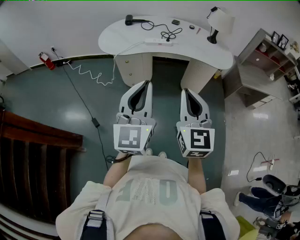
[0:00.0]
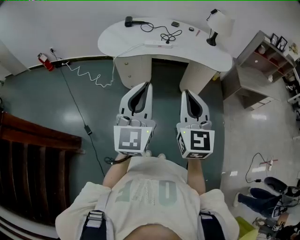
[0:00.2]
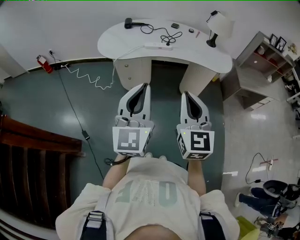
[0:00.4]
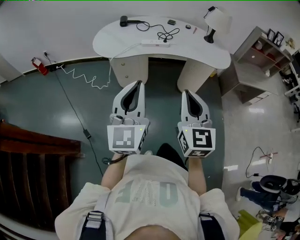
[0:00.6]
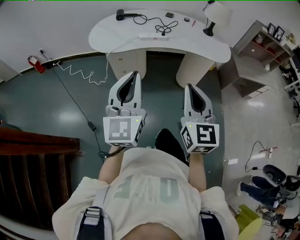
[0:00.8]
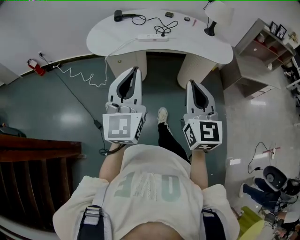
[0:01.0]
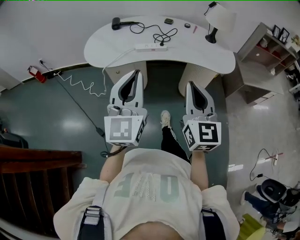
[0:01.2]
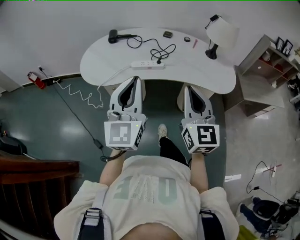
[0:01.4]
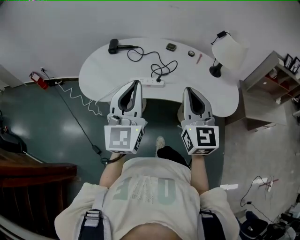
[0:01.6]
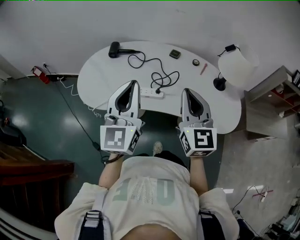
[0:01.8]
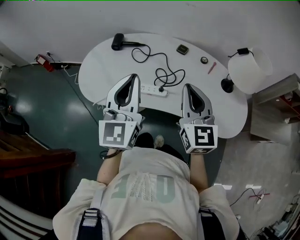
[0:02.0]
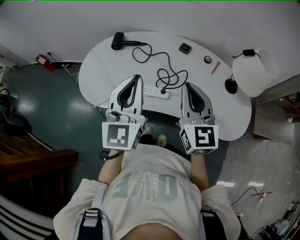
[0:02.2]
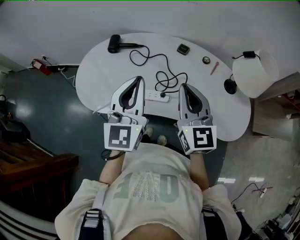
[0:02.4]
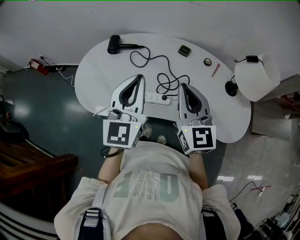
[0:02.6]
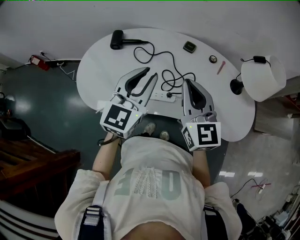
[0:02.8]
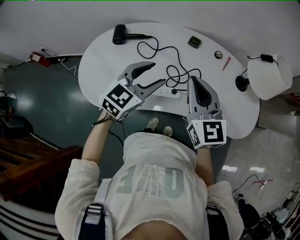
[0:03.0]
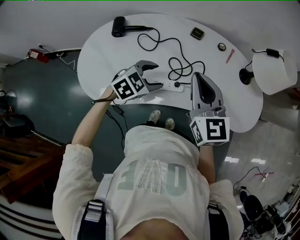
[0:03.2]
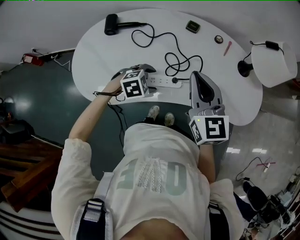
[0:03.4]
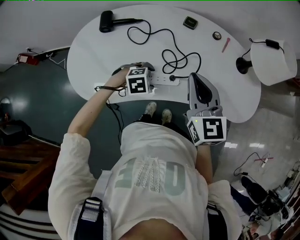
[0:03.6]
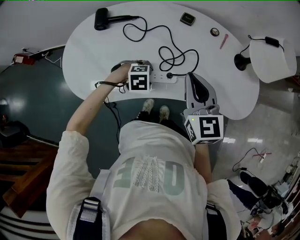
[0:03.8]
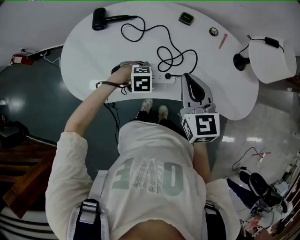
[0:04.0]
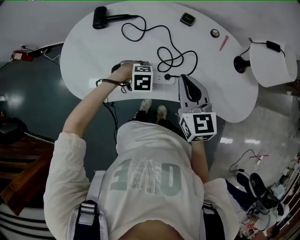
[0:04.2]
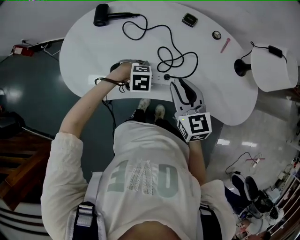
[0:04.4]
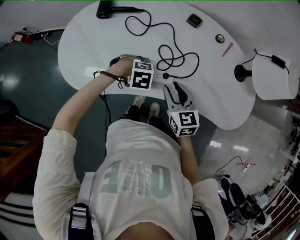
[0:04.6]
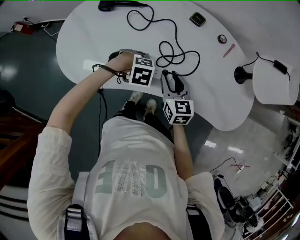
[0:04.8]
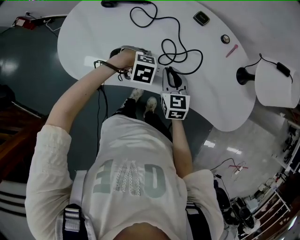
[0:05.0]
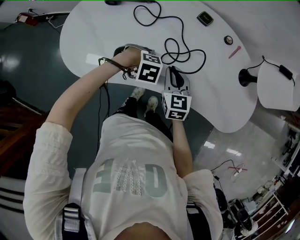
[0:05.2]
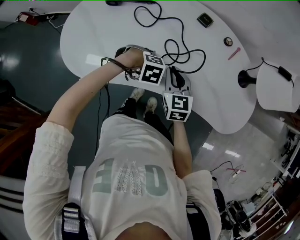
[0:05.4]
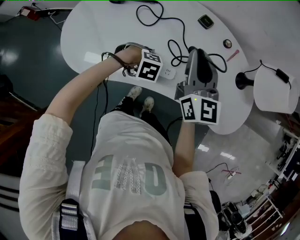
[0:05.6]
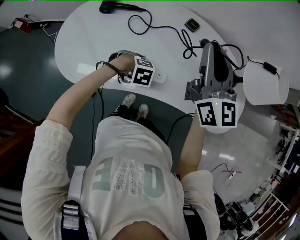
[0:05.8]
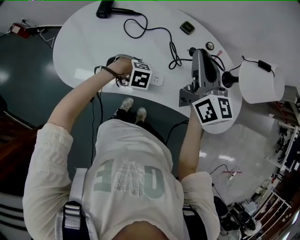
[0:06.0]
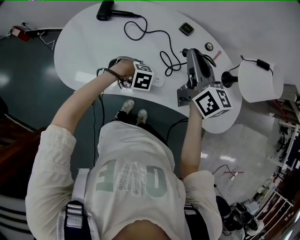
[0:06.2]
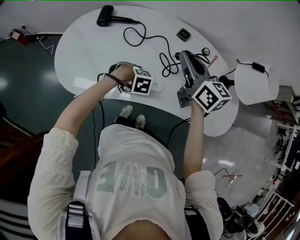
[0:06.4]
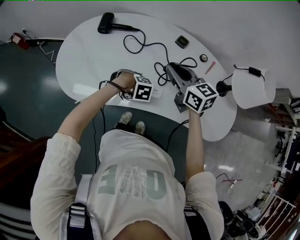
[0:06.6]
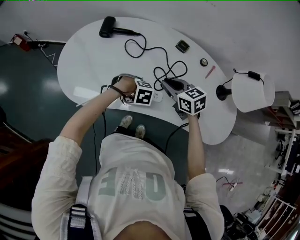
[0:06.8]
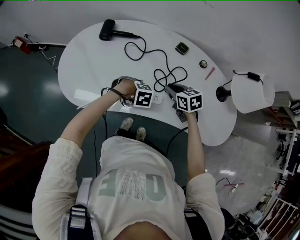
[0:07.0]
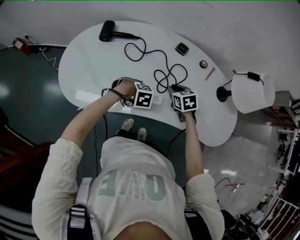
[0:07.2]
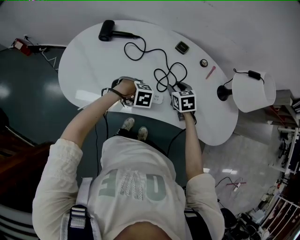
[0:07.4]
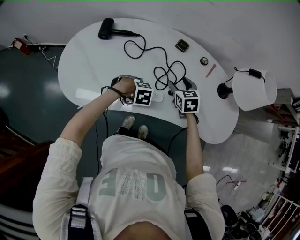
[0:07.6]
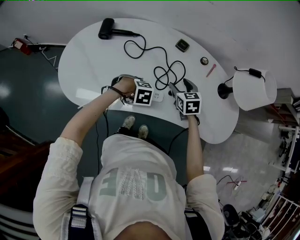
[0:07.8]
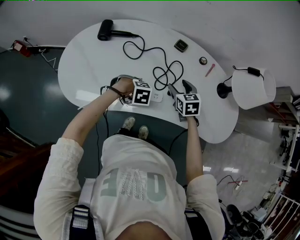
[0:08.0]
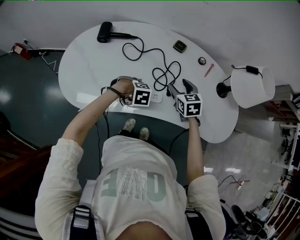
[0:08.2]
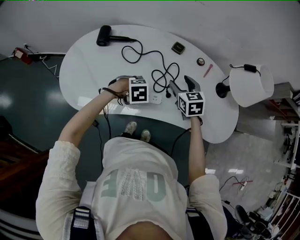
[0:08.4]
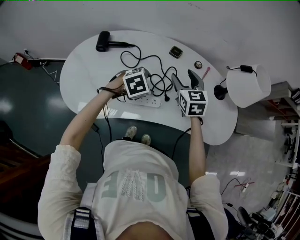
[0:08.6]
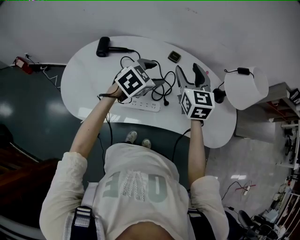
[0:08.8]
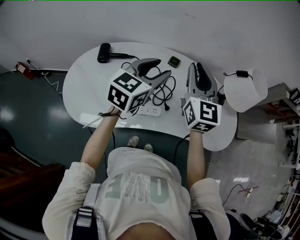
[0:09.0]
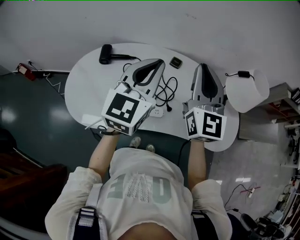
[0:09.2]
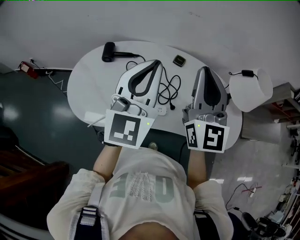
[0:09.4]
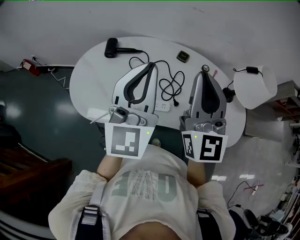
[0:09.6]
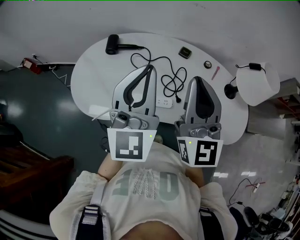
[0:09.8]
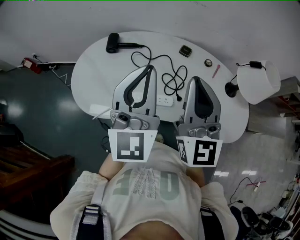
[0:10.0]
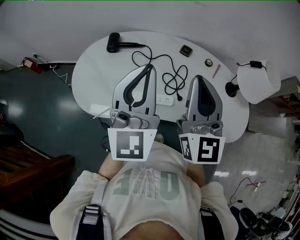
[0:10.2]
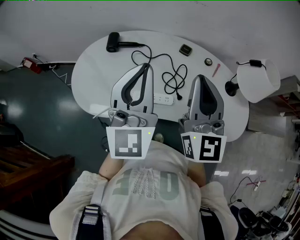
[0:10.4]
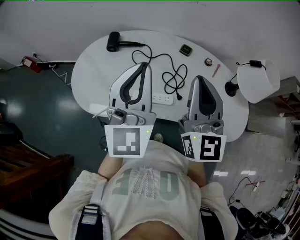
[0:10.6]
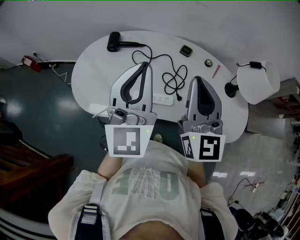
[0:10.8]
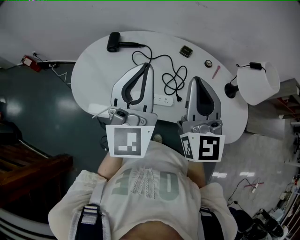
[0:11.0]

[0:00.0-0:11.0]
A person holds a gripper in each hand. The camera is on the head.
0:00.0 to 0:01.6: Both grippers travel together forward, some 35 cm.
0:01.6 to 0:03.2: The left gripper travels downward by about 25 cm, points its fingers roughly 60 degrees further downward, and opens its fingers. The right gripper ends up roughly 25 cm from where it was.
0:03.2 to 0:04.8: The right gripper moves downward, some 20 cm, turns by about 20 degrees, and opens its fingers, while the left gripper travels downward by some 15 cm, and tips its fingers downward by some 30 degrees.
0:04.8 to 0:06.2: The right gripper heads upward, covering approximately 20 cm, turns by roughly 30 degrees, and closes up.
0:06.2 to 0:07.8: The right gripper travels downward by approximately 20 cm, tips its fingers downward by approximately 40 degrees, and opens.
0:07.8 to 0:09.4: Both grippers move upward, about 40 cm. The left gripper tips its fingers upward by roughly 100 degrees, and closes its fingers; the right gripper points its fingers some 60 degrees further upward, and closes.
0:09.4 to 0:11.0: The right gripper moves some 5 cm, while the left gripper shifts by some 5 cm.

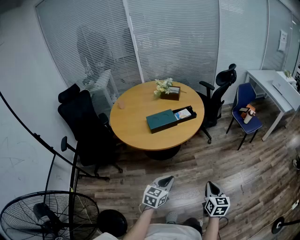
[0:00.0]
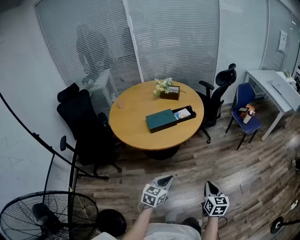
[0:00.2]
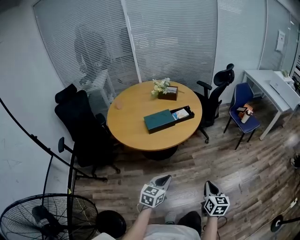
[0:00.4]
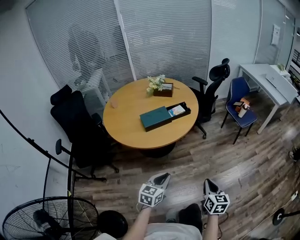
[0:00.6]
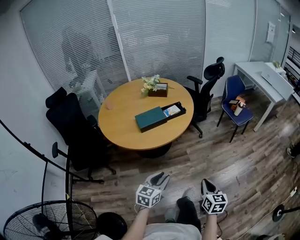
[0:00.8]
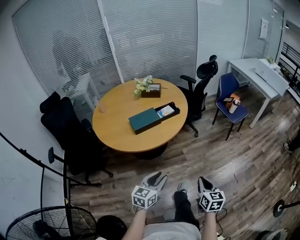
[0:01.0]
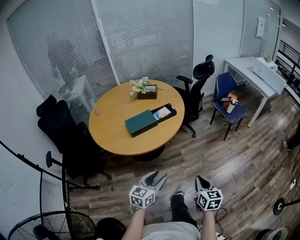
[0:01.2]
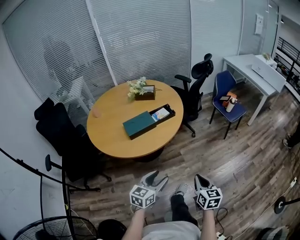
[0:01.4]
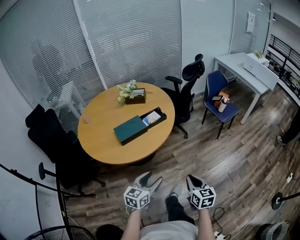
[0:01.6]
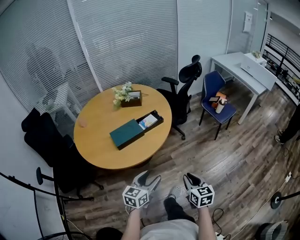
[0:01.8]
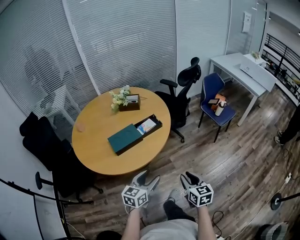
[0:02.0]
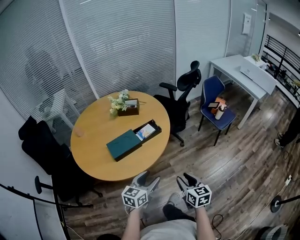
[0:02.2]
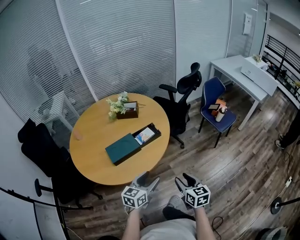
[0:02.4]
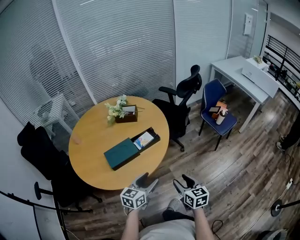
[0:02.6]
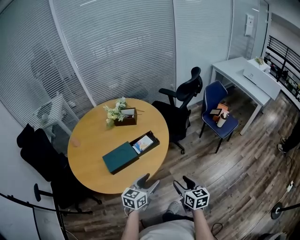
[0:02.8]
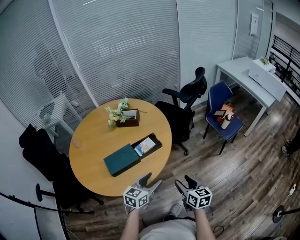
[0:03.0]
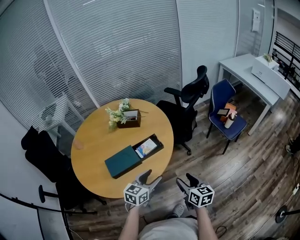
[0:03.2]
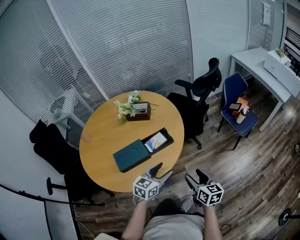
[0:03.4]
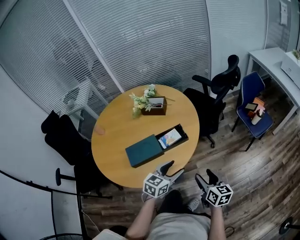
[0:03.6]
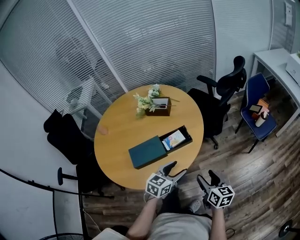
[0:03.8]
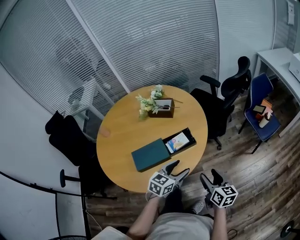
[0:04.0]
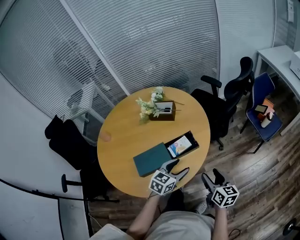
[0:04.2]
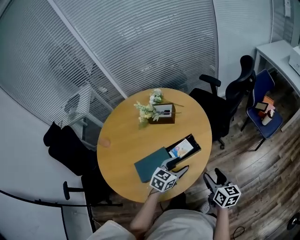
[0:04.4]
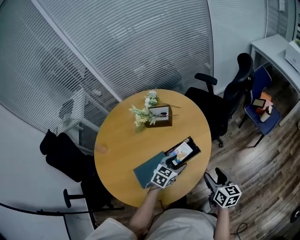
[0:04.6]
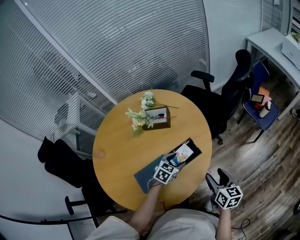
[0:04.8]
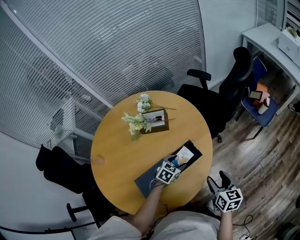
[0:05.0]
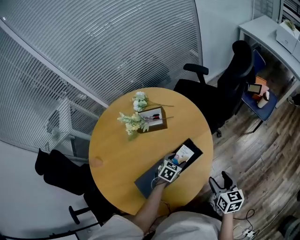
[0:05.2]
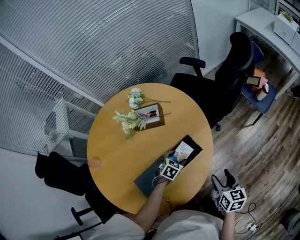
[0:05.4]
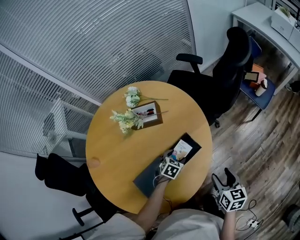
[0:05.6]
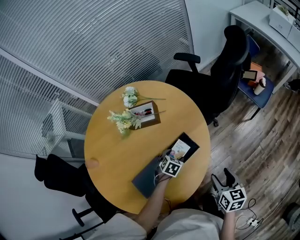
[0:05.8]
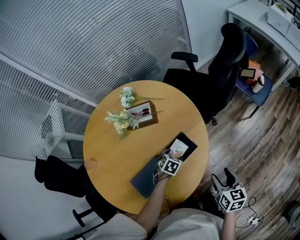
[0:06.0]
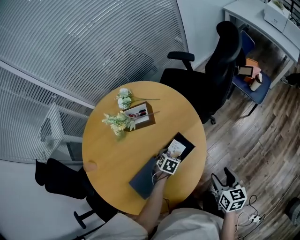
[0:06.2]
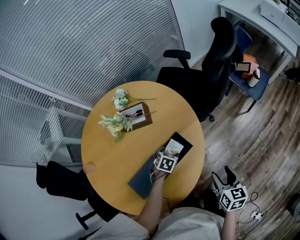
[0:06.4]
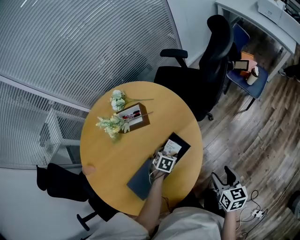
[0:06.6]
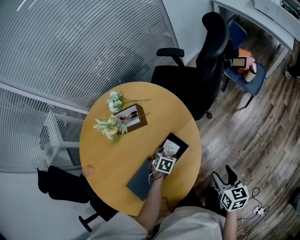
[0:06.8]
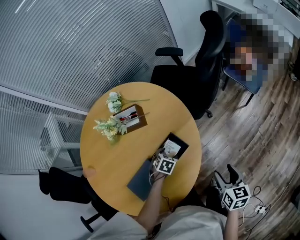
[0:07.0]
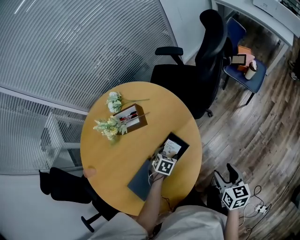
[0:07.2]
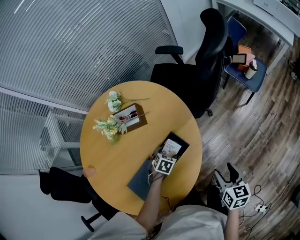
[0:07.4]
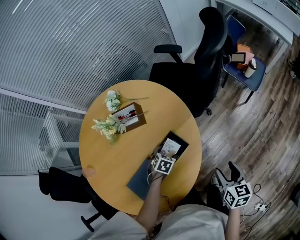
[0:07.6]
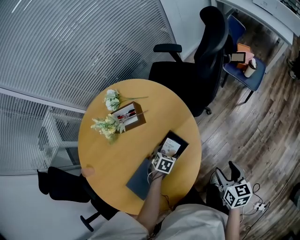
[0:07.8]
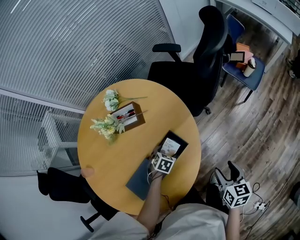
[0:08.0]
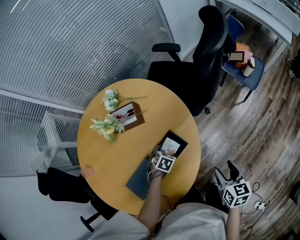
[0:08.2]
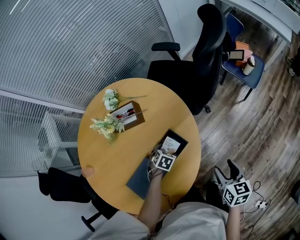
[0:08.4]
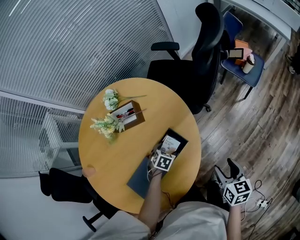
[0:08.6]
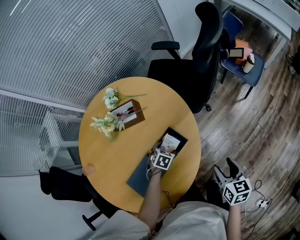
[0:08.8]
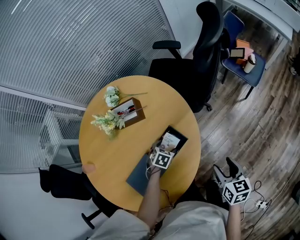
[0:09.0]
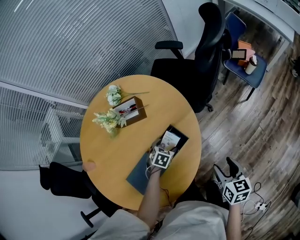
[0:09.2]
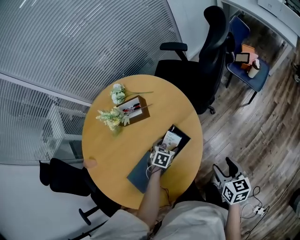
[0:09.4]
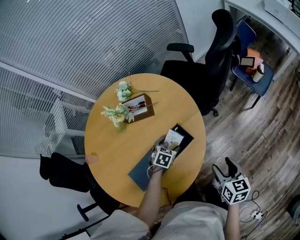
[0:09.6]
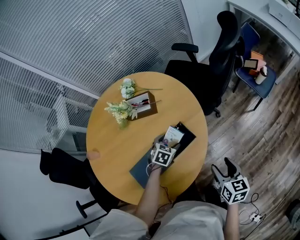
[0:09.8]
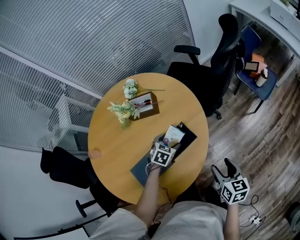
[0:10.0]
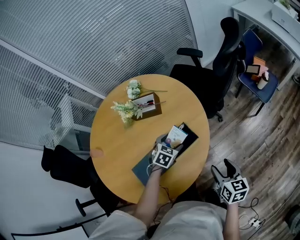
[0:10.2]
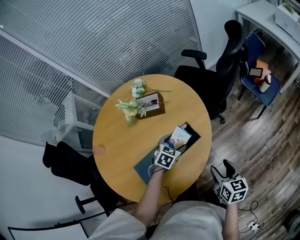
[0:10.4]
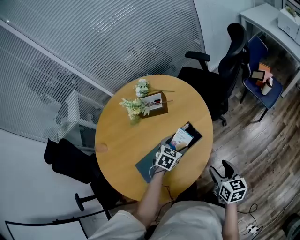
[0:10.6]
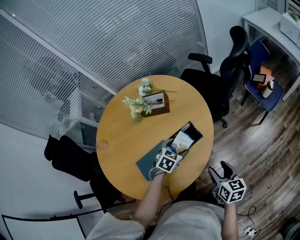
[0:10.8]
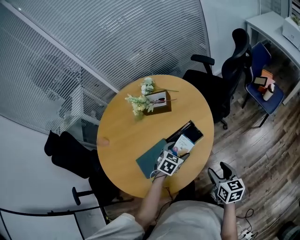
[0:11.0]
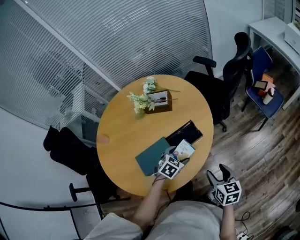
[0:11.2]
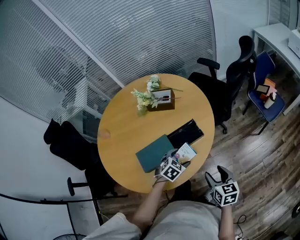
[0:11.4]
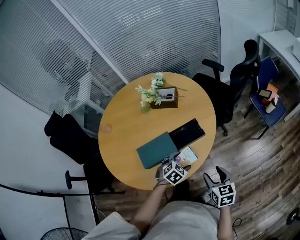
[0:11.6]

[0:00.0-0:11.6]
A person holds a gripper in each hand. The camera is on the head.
0:00.0 to 0:01.4: Both grippers move forward, some 5 cm. The left gripper opens up.
0:01.4 to 0:02.8: The grippers both shift forward by roughly 25 cm. The right gripper opens up.
0:02.8 to 0:04.4: The two grippers go roughly 20 cm forward.
0:04.4 to 0:05.8: The left gripper shifts about 20 cm downward and forward, and points its fingers some 30 degrees further downward. The right gripper heads downward, covering approximately 5 cm, and swivels about 20 degrees.
0:05.8 to 0:07.2: The right gripper moves roughly 5 cm.
0:07.2 to 0:08.8: The grippers move only a little.
0:08.8 to 0:10.2: The left gripper shifts some 10 cm upward.
0:10.2 to 0:11.6: The left gripper goes some 20 cm backward, while the right gripper heads backward, covering about 10 cm, and turns by roughly 20 degrees.

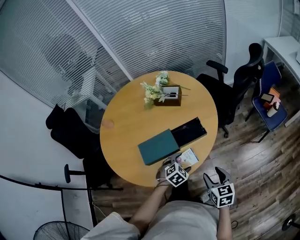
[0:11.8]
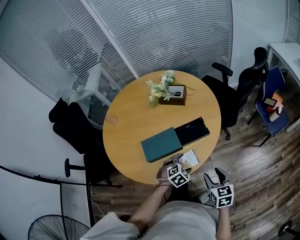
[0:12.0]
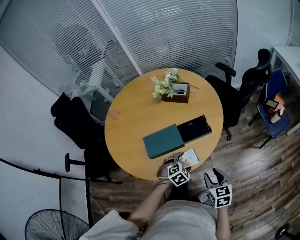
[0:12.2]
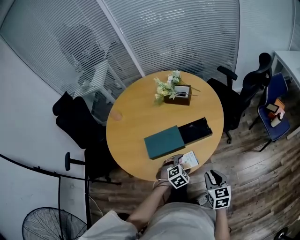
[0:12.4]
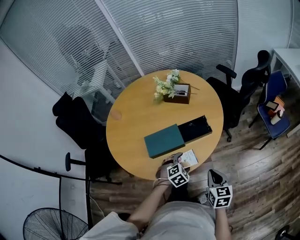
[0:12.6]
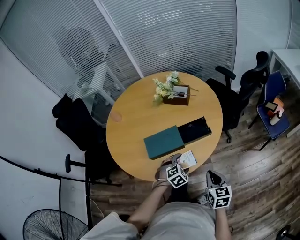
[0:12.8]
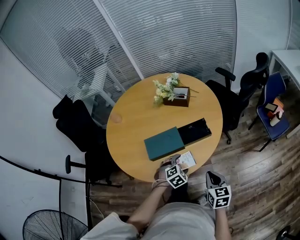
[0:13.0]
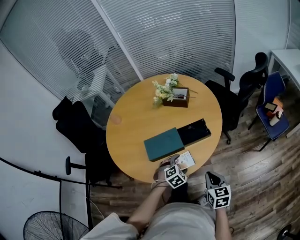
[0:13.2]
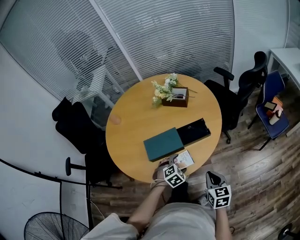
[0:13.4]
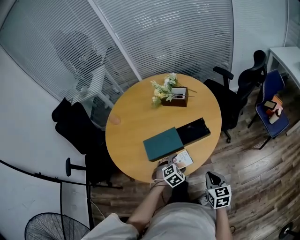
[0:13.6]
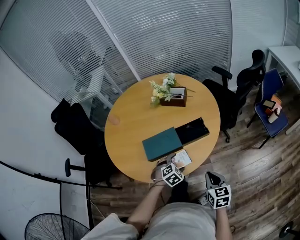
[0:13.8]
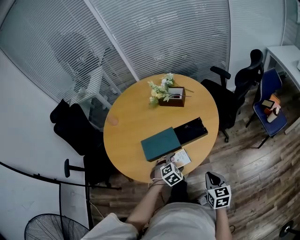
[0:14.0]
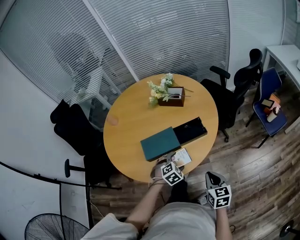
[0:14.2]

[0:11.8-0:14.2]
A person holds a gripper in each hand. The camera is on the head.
0:11.8 to 0:13.0: The right gripper closes.
0:13.0 to 0:14.2: There are only small adjustments of the grippers.
